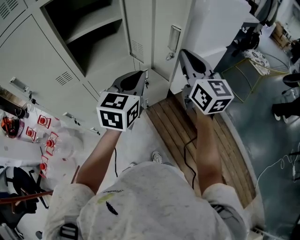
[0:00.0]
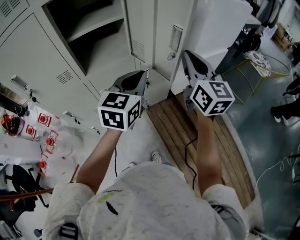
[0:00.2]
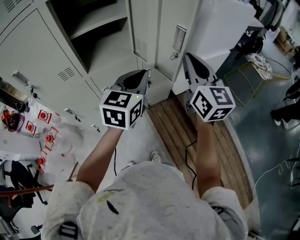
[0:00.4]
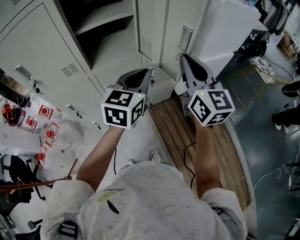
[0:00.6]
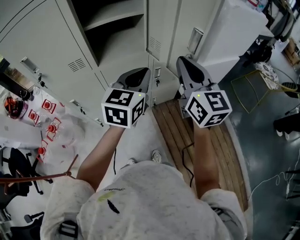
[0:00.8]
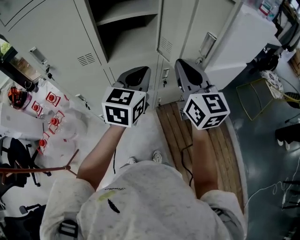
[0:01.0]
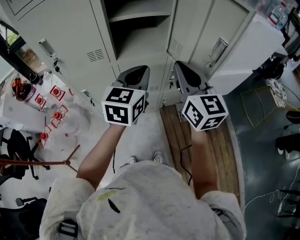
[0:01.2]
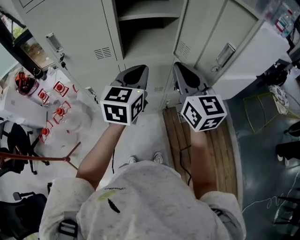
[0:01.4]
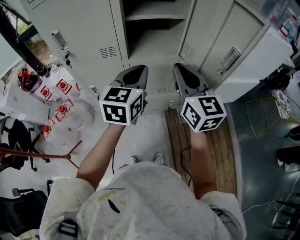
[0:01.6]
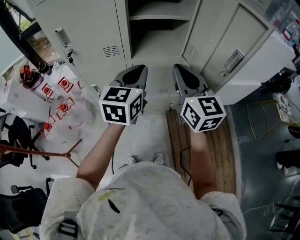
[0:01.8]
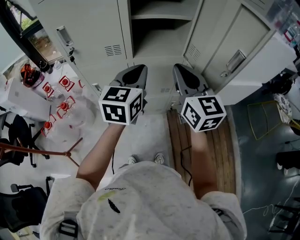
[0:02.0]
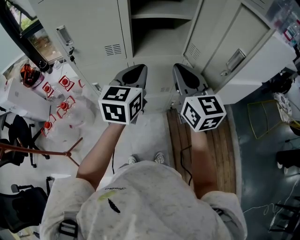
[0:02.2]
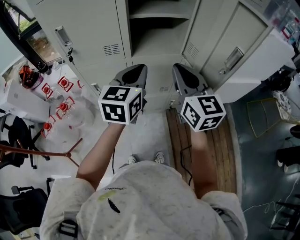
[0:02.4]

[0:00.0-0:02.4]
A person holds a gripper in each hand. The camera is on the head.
0:00.0 to 0:01.2: Both grippers move to the left, roughly 15 cm.
0:01.2 to 0:02.4: The grippers both shift to the left by approximately 5 cm.

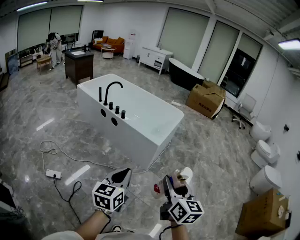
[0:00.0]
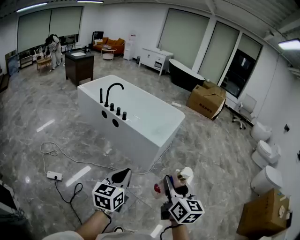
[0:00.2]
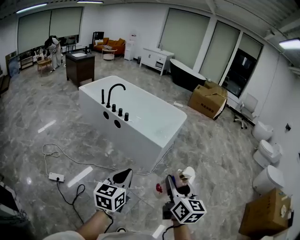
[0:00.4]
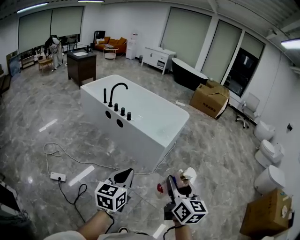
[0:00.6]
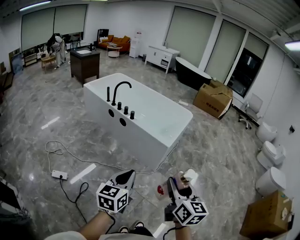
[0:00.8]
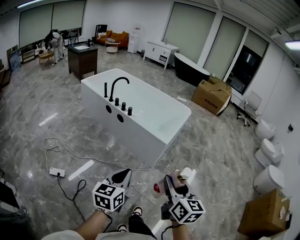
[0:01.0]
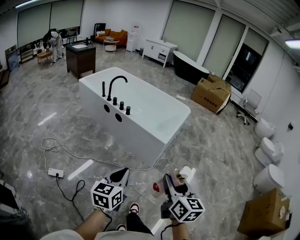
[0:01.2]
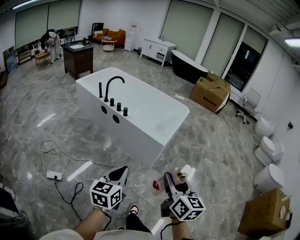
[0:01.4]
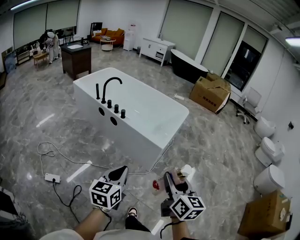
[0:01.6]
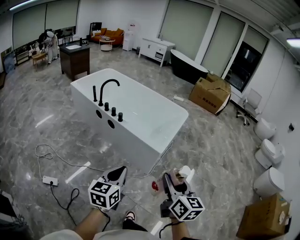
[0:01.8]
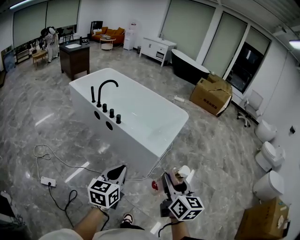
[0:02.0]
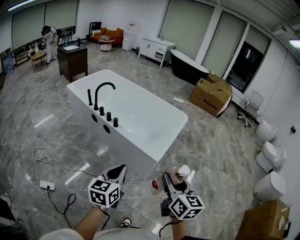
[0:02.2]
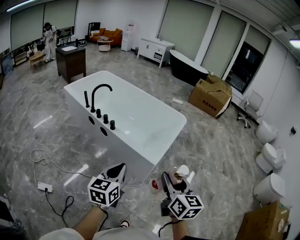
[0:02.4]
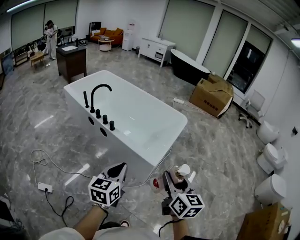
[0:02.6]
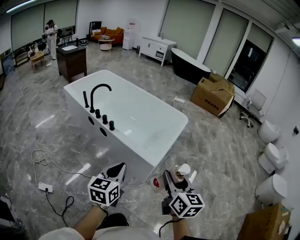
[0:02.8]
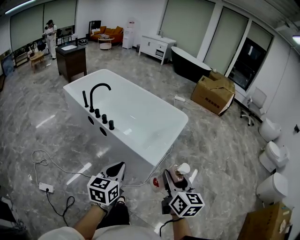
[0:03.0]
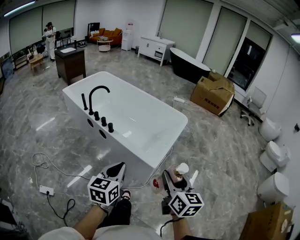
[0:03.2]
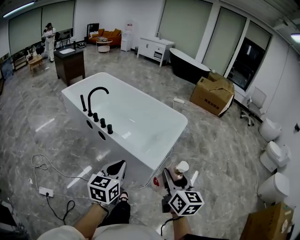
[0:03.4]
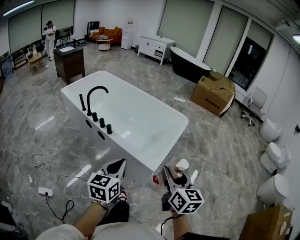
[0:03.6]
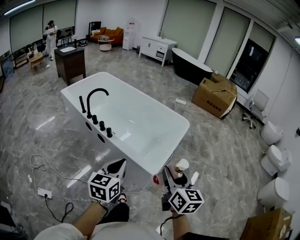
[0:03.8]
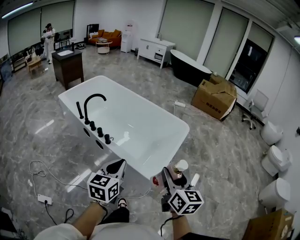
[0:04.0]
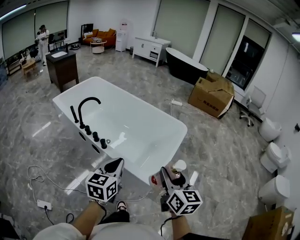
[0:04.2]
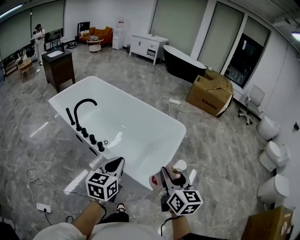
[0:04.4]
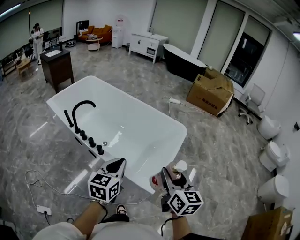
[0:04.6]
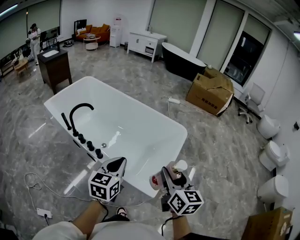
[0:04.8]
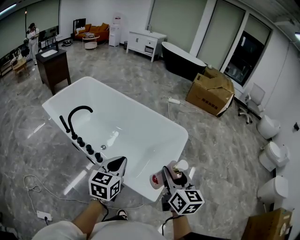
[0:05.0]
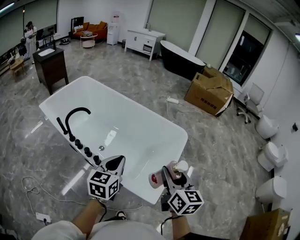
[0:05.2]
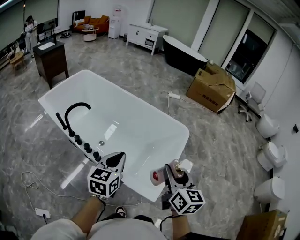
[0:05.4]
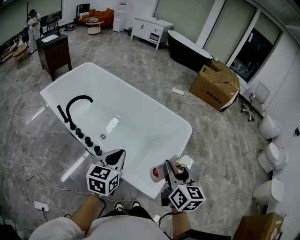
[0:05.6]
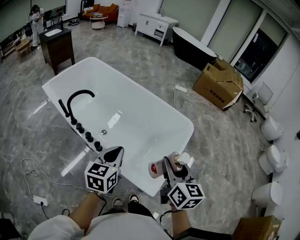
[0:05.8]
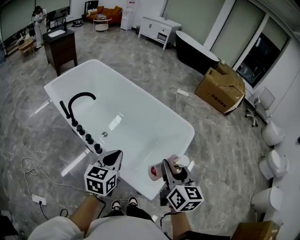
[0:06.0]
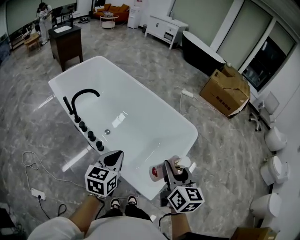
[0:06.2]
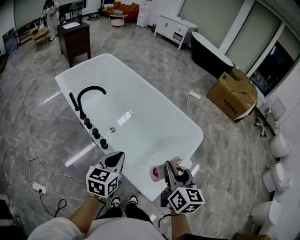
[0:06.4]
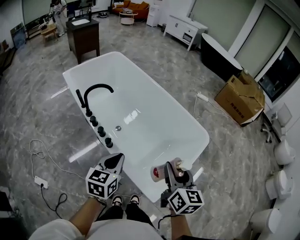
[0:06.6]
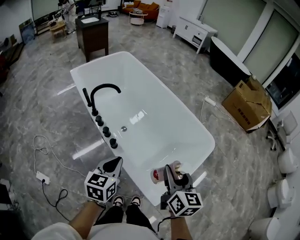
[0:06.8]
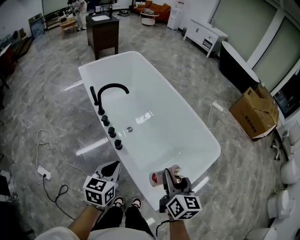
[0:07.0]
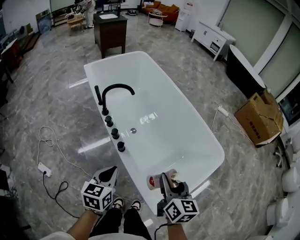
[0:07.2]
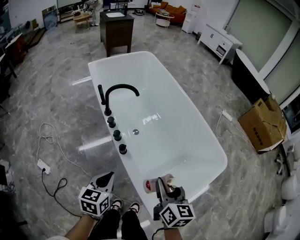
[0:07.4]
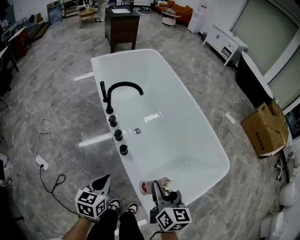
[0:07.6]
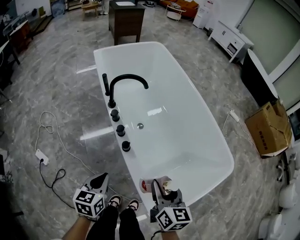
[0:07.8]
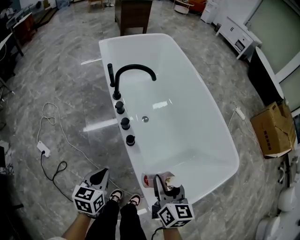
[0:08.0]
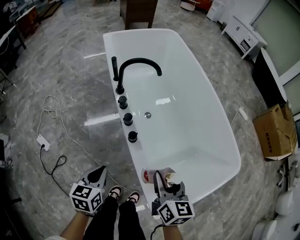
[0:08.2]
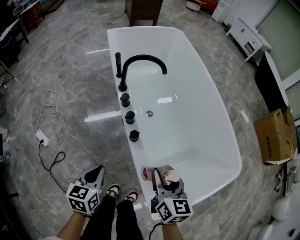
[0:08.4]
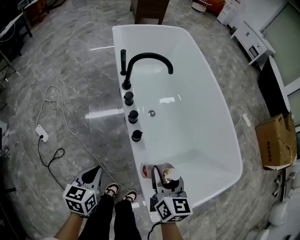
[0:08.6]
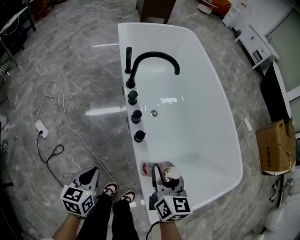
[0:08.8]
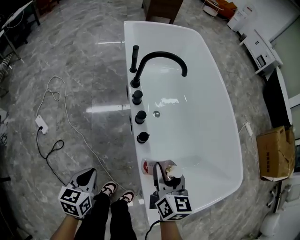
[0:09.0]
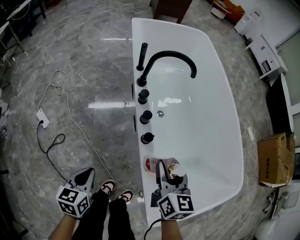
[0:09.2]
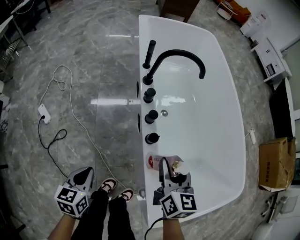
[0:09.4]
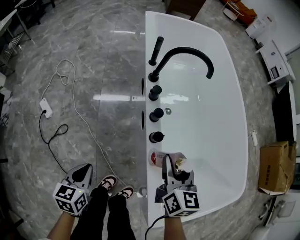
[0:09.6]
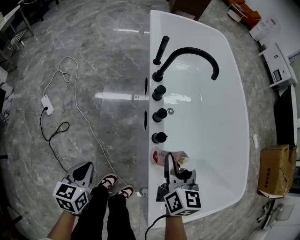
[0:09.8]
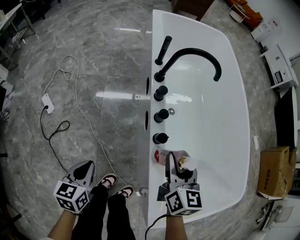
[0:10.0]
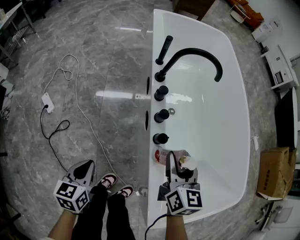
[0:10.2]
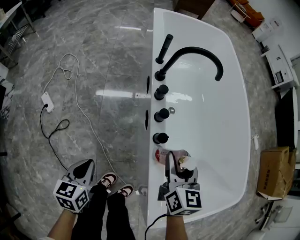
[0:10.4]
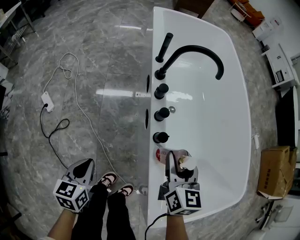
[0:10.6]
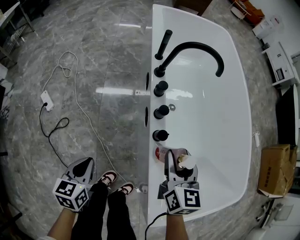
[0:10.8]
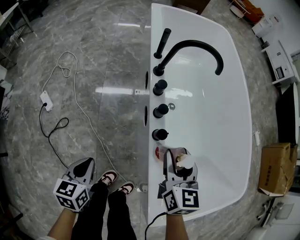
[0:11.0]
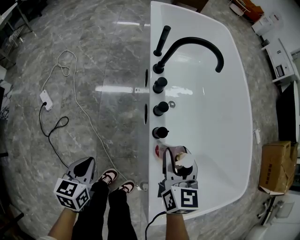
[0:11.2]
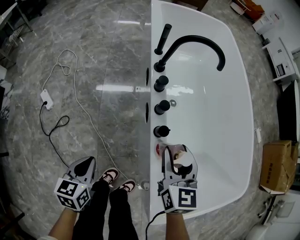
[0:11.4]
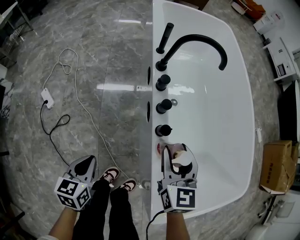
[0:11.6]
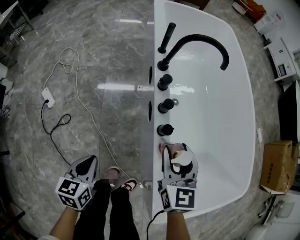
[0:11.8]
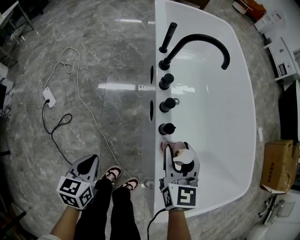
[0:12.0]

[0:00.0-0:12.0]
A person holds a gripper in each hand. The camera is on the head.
0:00.0 to 0:01.6: The two grippers go about 10 cm forward.
0:01.6 to 0:03.0: The two grippers go approximately 20 cm forward.
0:03.0 to 0:04.4: The grippers both shift forward by about 20 cm.
0:04.4 to 0:06.0: The two grippers go roughly 10 cm forward.
0:06.0 to 0:07.6: The left gripper shifts by some 20 cm, and rotates about 30 degrees. The right gripper is displaced downward by roughly 10 cm, and changes its angle by about 30 degrees.
0:07.6 to 0:09.0: The left gripper shifts some 15 cm to the left and downward; the right gripper is displaced forward, downward and to the left by about 15 cm.
0:09.0 to 0:10.4: The left gripper changes place by about 5 cm. Meanwhile the right gripper moves forward, some 5 cm.
0:10.4 to 0:12.0: There are only small adjustments of the grippers.

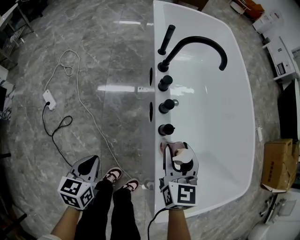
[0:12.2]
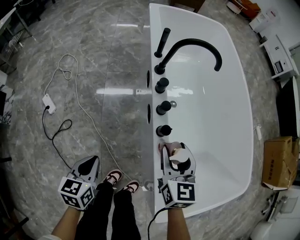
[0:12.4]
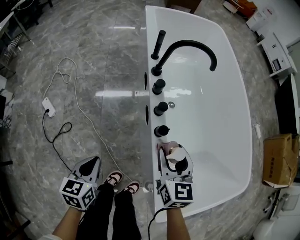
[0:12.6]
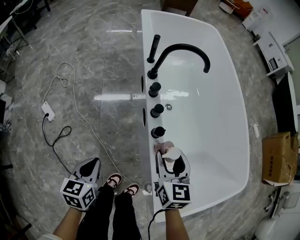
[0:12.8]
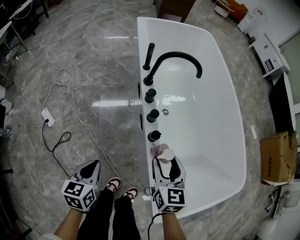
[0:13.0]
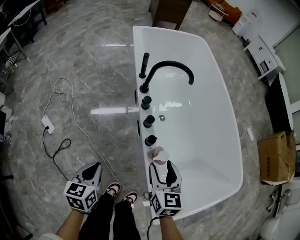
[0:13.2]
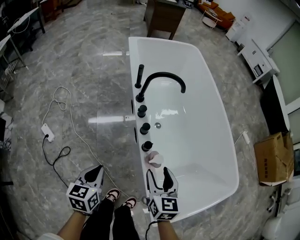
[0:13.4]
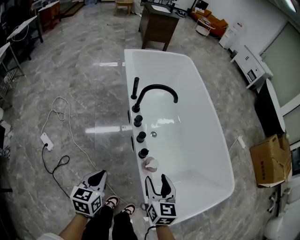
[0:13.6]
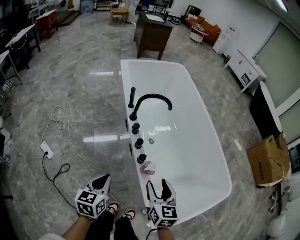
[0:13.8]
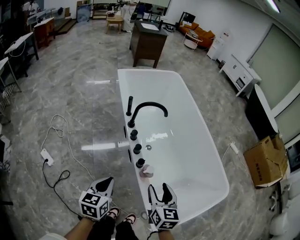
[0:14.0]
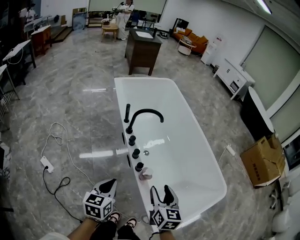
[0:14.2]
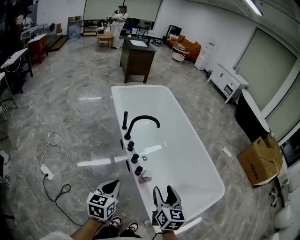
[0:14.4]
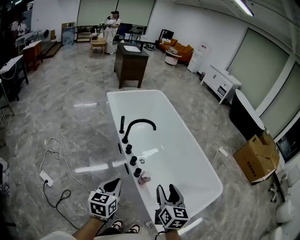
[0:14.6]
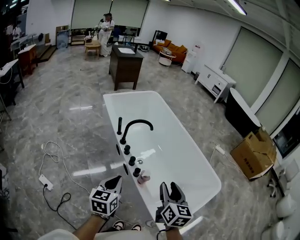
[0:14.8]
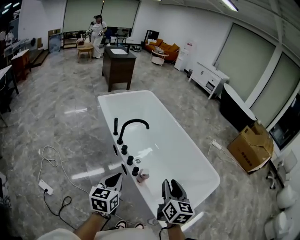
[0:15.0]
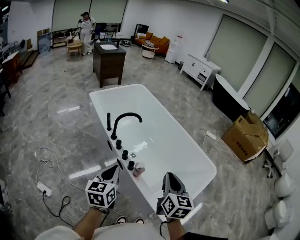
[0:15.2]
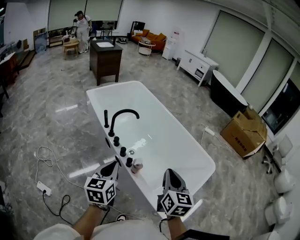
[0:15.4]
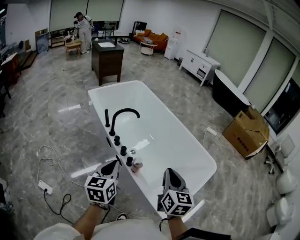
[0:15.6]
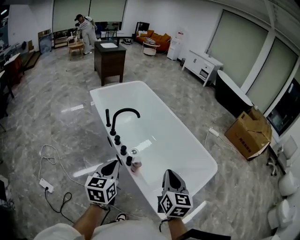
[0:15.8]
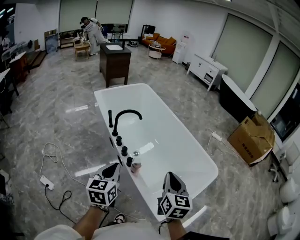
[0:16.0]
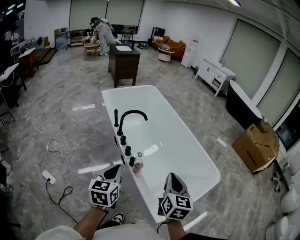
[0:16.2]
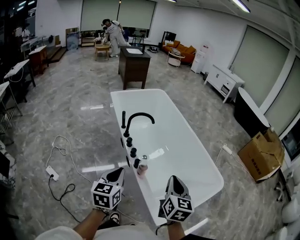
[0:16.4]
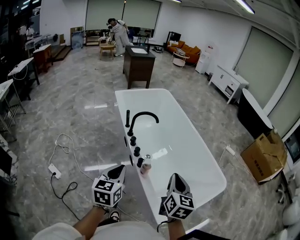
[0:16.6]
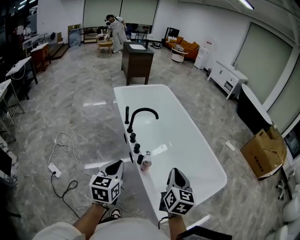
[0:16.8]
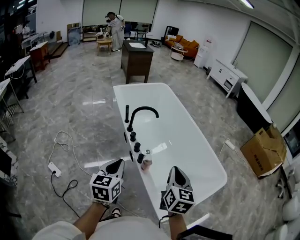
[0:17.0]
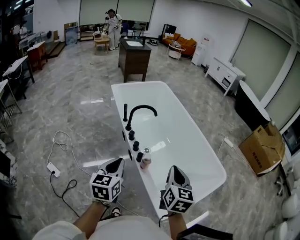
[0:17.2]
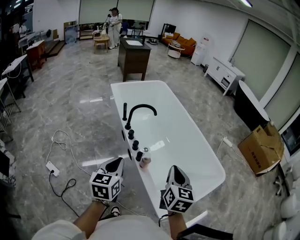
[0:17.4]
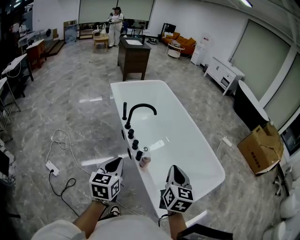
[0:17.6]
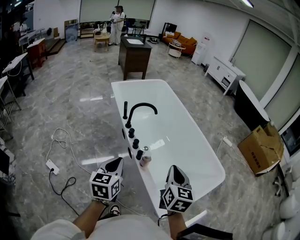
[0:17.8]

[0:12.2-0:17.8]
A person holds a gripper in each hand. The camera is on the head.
0:12.2 to 0:13.6: The right gripper moves backward, some 5 cm, while the left gripper shifts about 10 cm upward and forward.
0:13.6 to 0:15.0: Both grippers travel together upward, approximately 15 cm. The right gripper rotates some 30 degrees, and closes. The left gripper swivels roughly 20 degrees.
0:15.0 to 0:16.4: The left gripper ends up about 5 cm from where it was, while the right gripper closes its fingers.
0:16.4 to 0:17.8: The grippers move only a little.

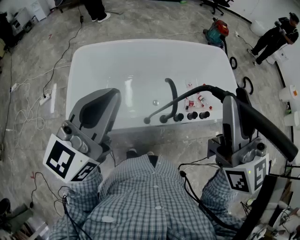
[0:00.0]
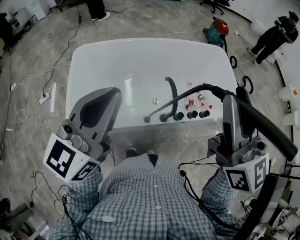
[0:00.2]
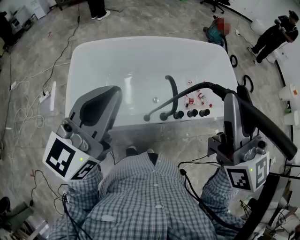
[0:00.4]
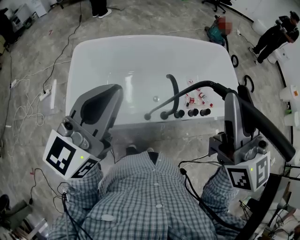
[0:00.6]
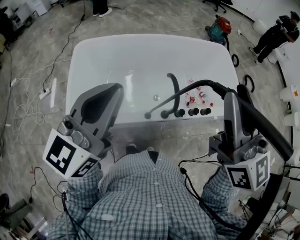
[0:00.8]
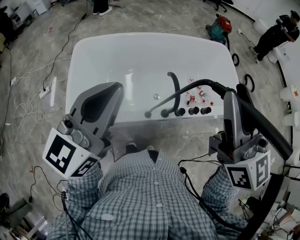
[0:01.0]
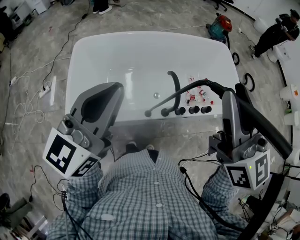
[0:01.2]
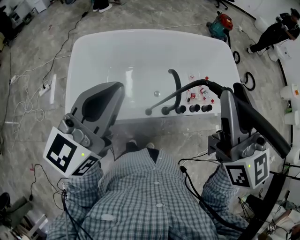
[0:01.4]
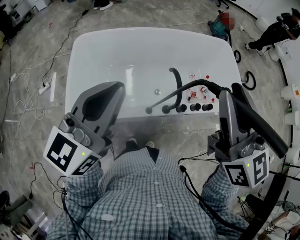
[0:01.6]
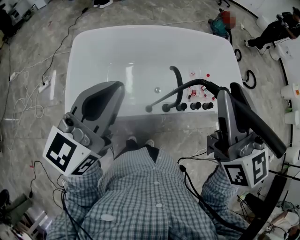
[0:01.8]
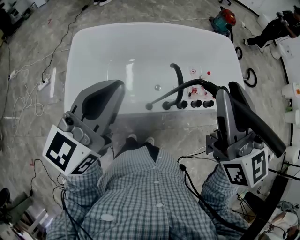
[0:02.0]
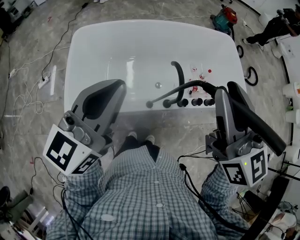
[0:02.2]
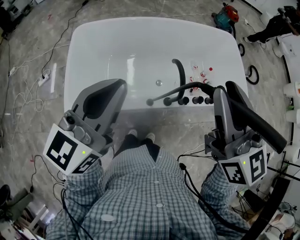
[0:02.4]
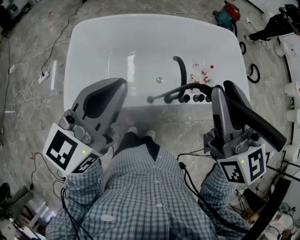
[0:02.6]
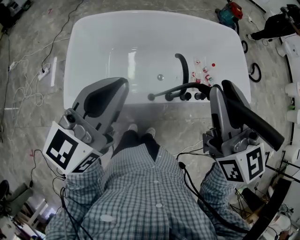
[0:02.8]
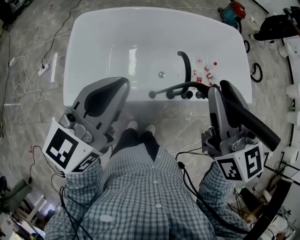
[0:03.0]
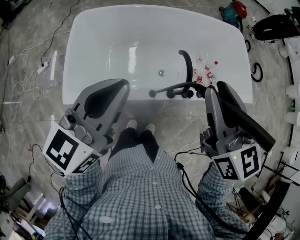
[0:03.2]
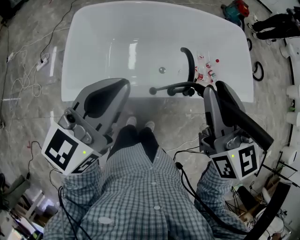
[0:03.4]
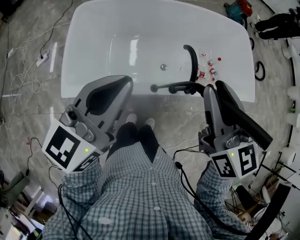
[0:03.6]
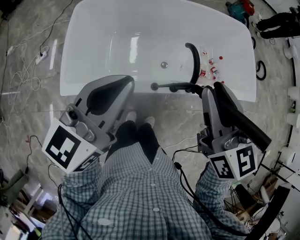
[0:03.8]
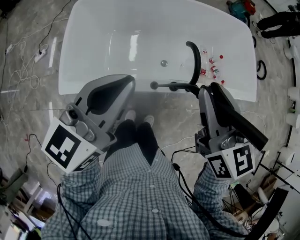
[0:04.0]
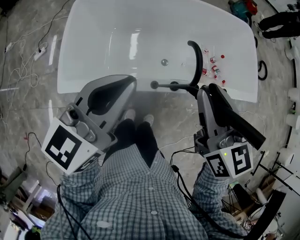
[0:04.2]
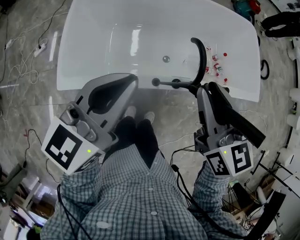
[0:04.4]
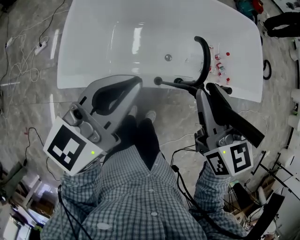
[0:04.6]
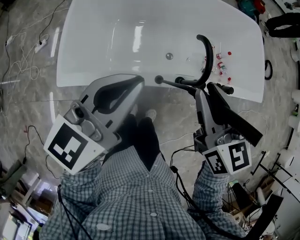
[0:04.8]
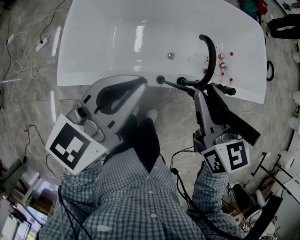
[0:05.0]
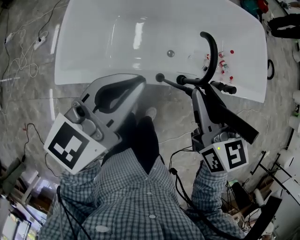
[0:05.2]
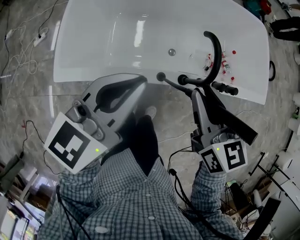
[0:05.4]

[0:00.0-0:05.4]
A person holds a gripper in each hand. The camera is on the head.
0:00.0 to 0:01.4: The grippers move only a little.
0:01.4 to 0:02.8: The right gripper travels downward by approximately 5 cm.
0:02.8 to 0:04.0: The left gripper is displaced downward by about 5 cm; the right gripper shifts approximately 10 cm downward.
0:04.0 to 0:05.4: The two grippers go approximately 10 cm downward.
